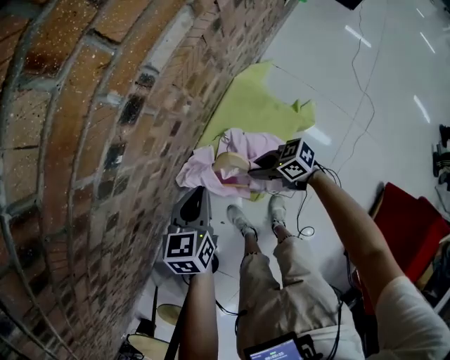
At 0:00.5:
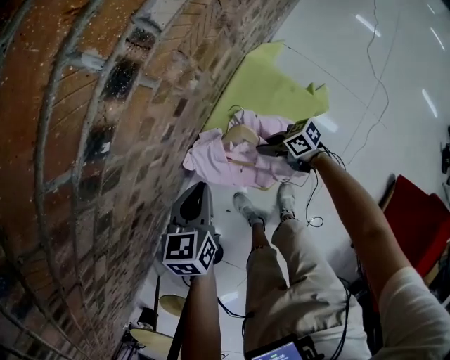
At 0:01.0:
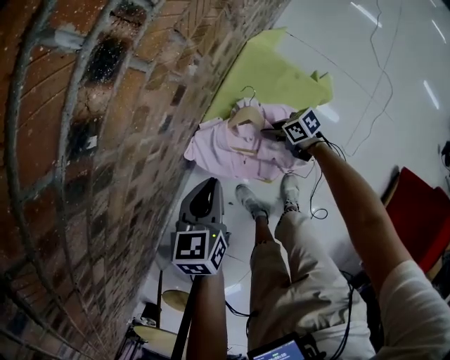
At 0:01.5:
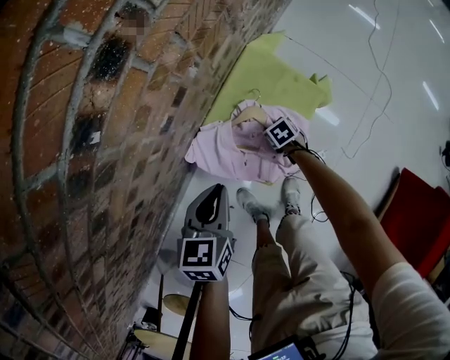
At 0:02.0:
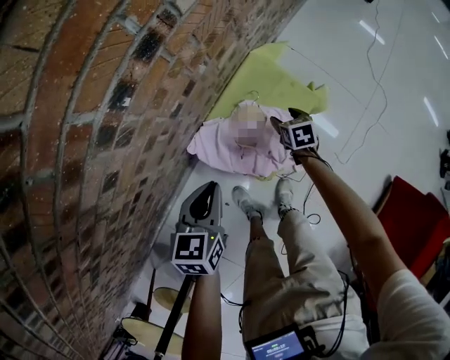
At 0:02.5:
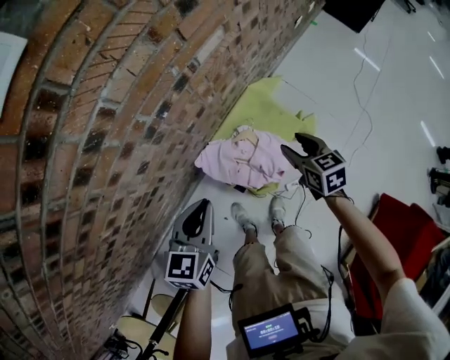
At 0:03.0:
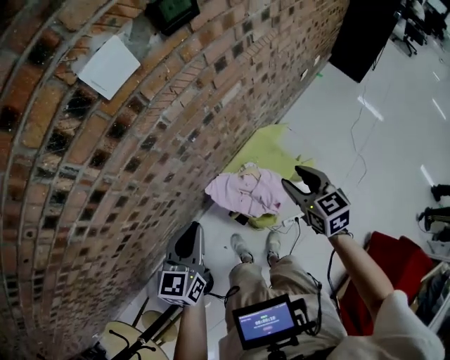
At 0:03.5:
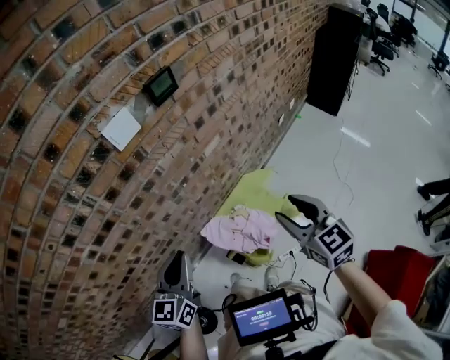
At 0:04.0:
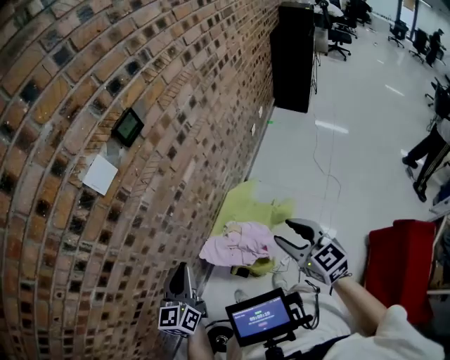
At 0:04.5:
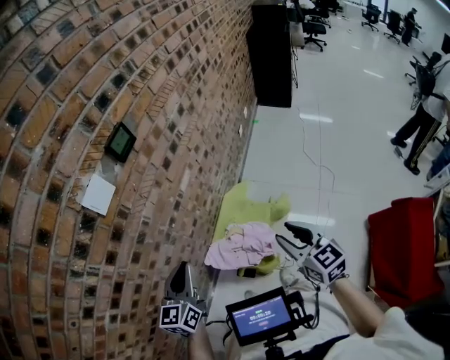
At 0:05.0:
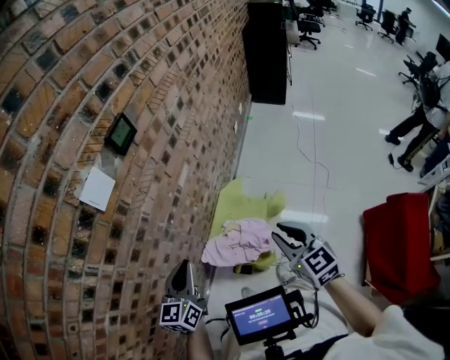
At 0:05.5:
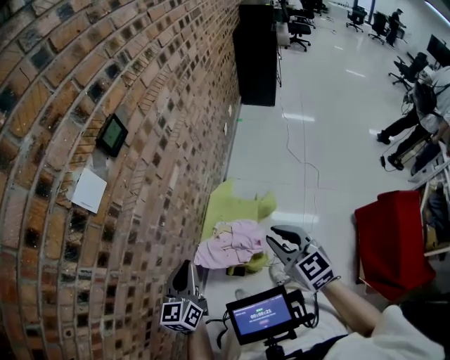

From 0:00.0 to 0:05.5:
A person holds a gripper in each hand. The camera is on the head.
From 0:00.0 to 0:02.0: The left gripper reaches some 10 cm downward, then returns; the right gripper travels downward by approximately 10 cm, tips its fingers downward by roughly 30 degrees, and opens its fingers.
From 0:02.0 to 0:03.5: The right gripper is displaced upward by some 80 cm, and tilts its fingers roughly 40 degrees upward, while the left gripper travels upward by approximately 50 cm, and tilts its fingers some 30 degrees upward.
From 0:03.5 to 0:05.5: The right gripper is displaced backward by approximately 5 cm, changes its angle by about 20 degrees, and closes up. The left gripper shifts about 10 cm forward, and changes its angle by about 20 degrees.

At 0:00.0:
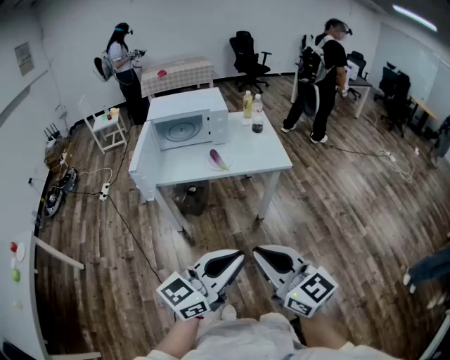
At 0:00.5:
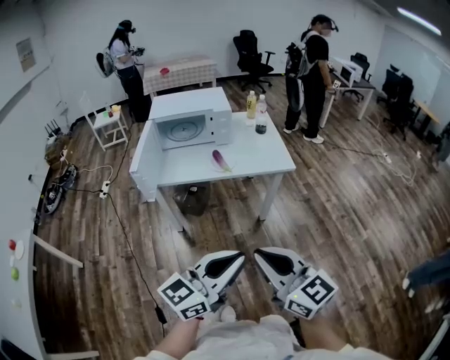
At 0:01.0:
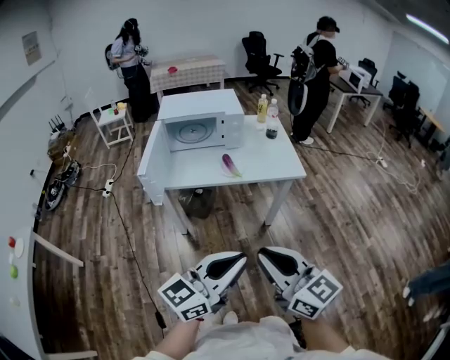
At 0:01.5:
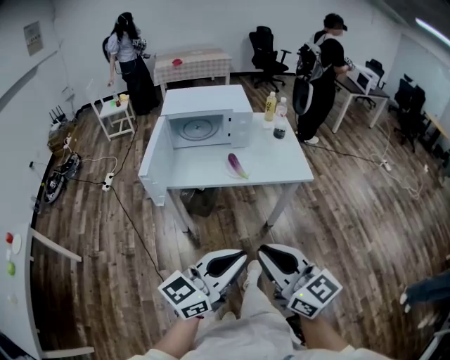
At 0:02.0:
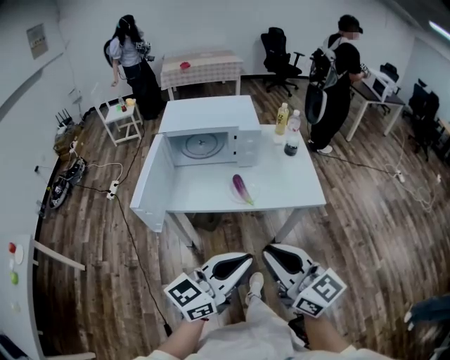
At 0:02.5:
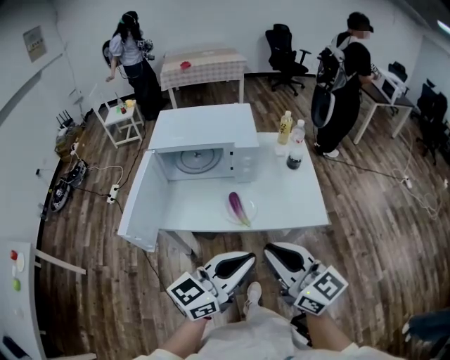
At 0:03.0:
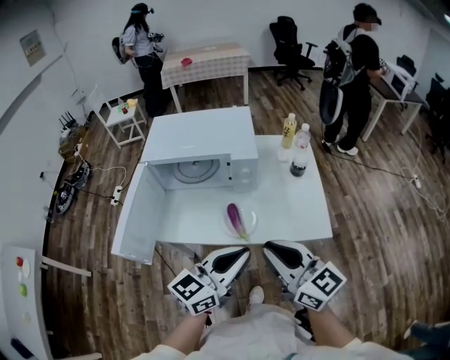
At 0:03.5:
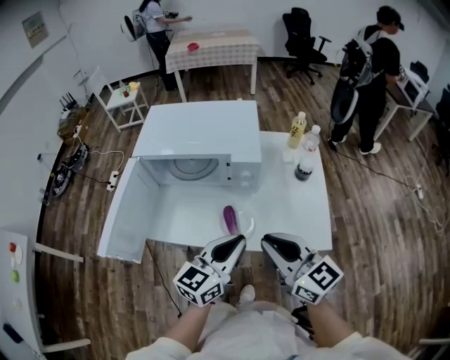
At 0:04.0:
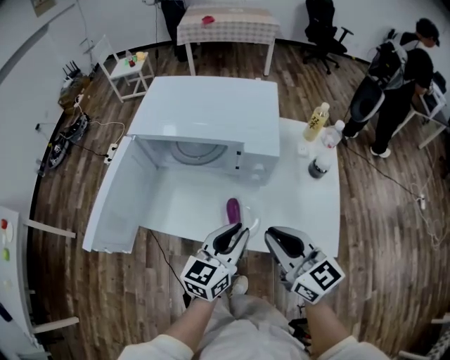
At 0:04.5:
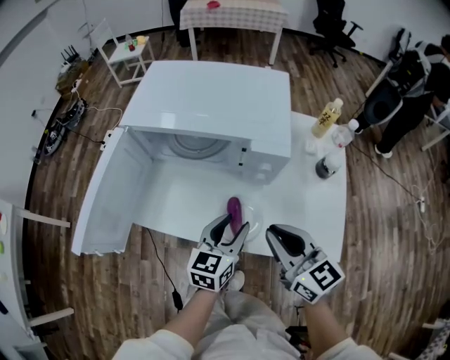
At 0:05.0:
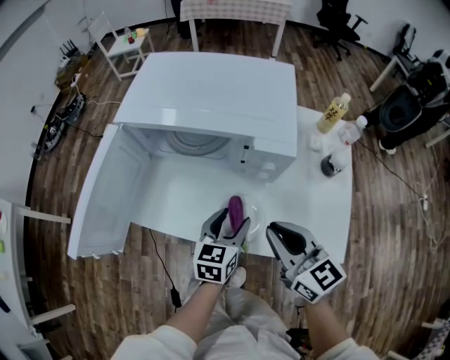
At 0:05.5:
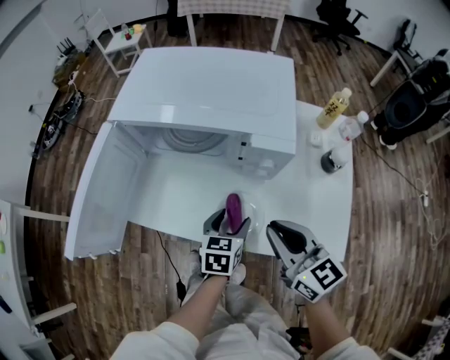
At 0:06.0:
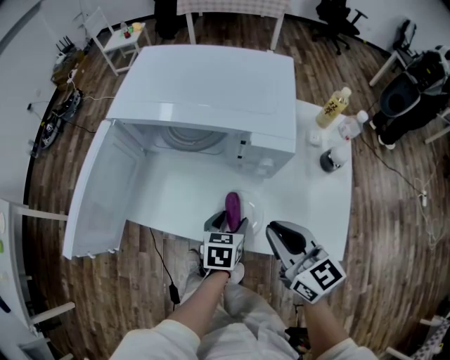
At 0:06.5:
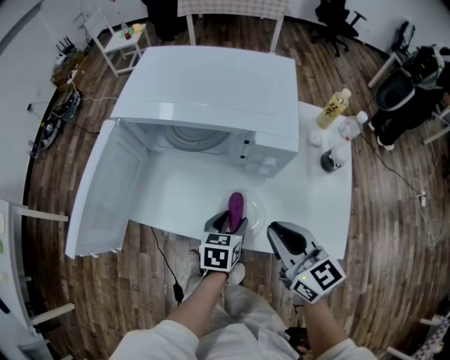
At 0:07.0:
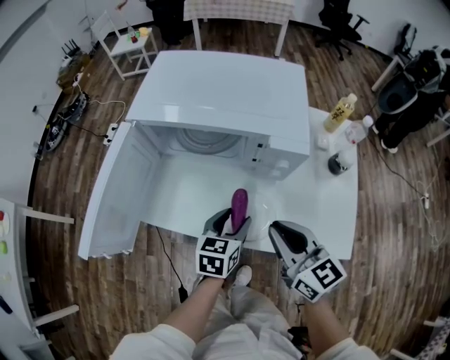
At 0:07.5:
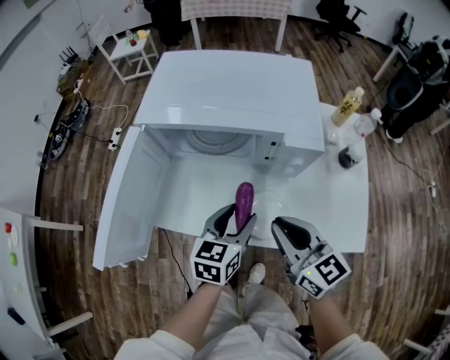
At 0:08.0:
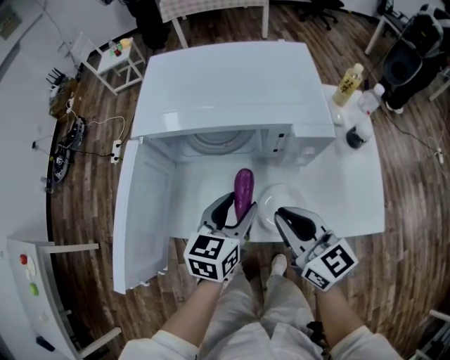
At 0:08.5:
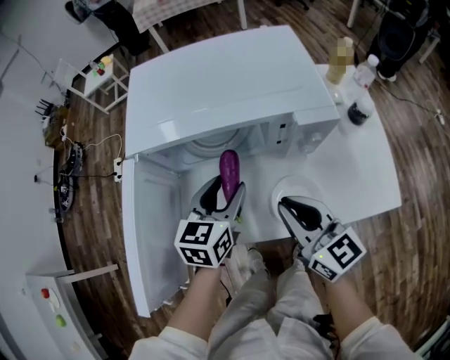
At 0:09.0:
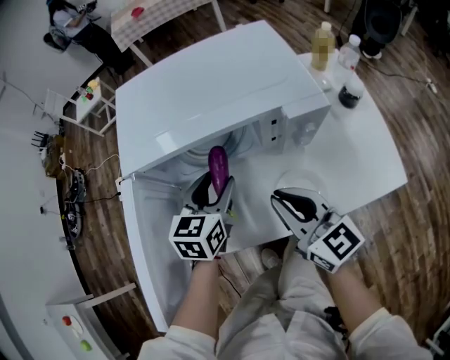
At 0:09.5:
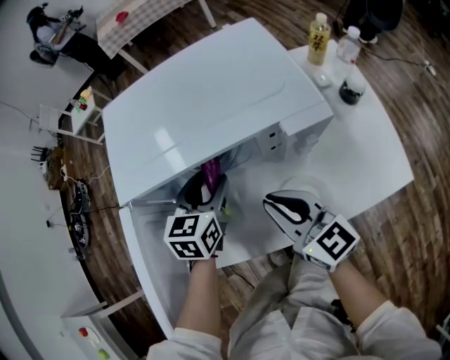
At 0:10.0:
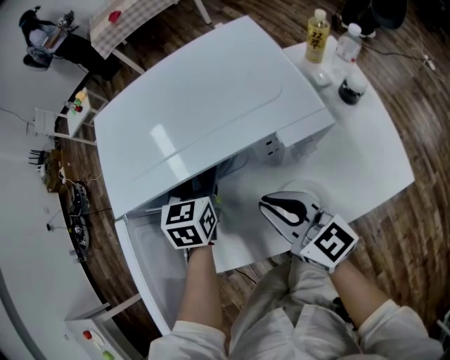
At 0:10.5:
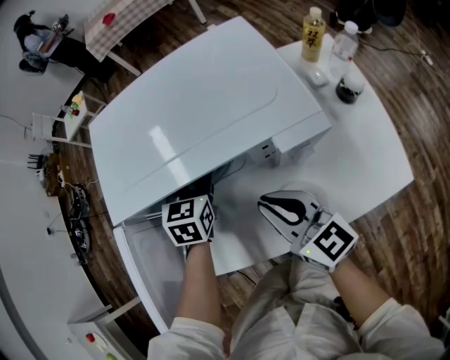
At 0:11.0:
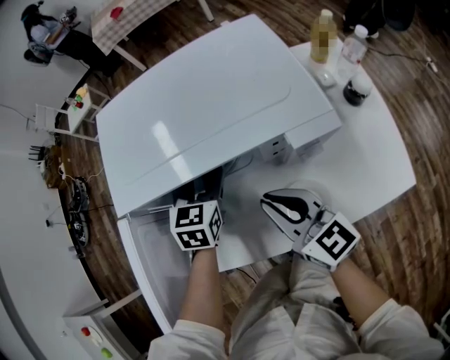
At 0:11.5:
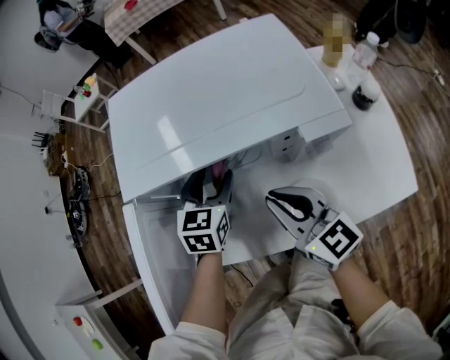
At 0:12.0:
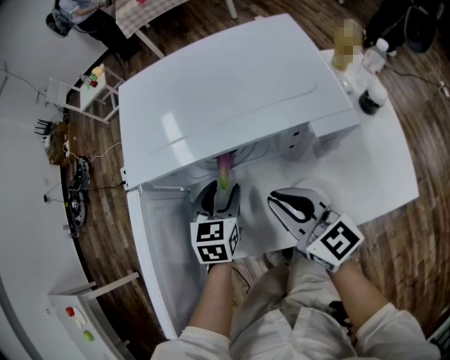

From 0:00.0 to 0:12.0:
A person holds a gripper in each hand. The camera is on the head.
From 0:00.0 to 0:02.0: The two grippers go about 25 cm forward.
From 0:02.0 to 0:04.0: The right gripper heads forward, covering approximately 30 cm, while the left gripper travels forward and downward by some 35 cm, and rotates some 30 degrees.
From 0:04.0 to 0:06.0: The left gripper travels downward by roughly 20 cm, angles its fingers downward, by about 40 degrees, and opens its fingers. The right gripper shifts some 5 cm downward.
From 0:06.0 to 0:08.0: The right gripper moves to the left, some 10 cm; the left gripper goes approximately 15 cm upward and to the left, and rotates approximately 20 degrees.
From 0:08.0 to 0:10.0: The left gripper moves forward, about 20 cm; the right gripper moves forward, approximately 10 cm.
From 0:10.0 to 0:12.0: The left gripper goes approximately 10 cm backward.

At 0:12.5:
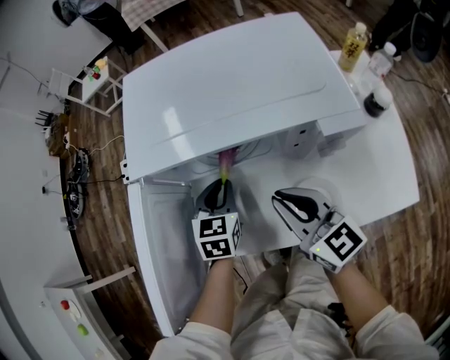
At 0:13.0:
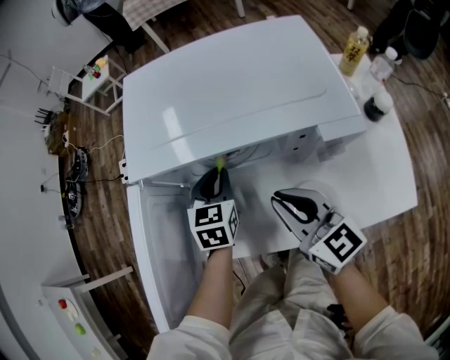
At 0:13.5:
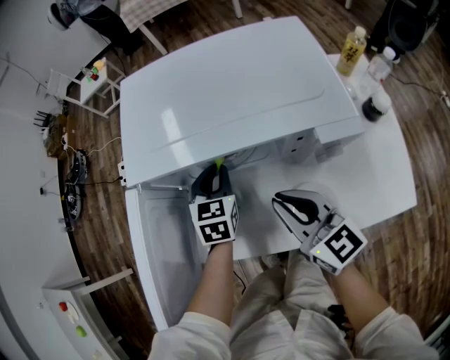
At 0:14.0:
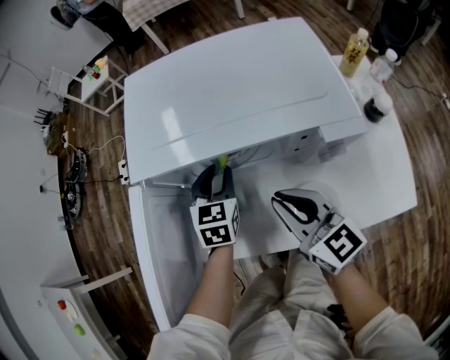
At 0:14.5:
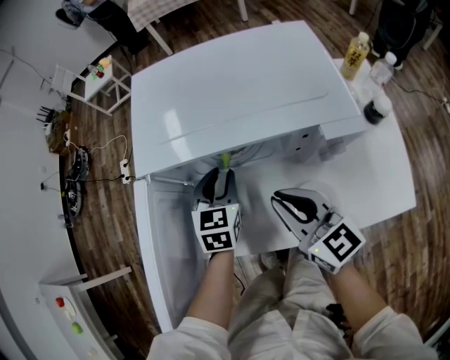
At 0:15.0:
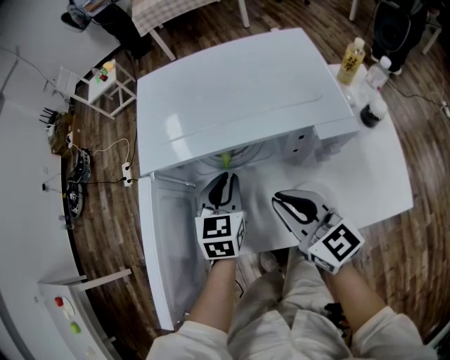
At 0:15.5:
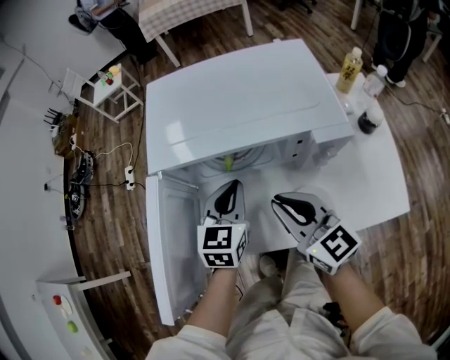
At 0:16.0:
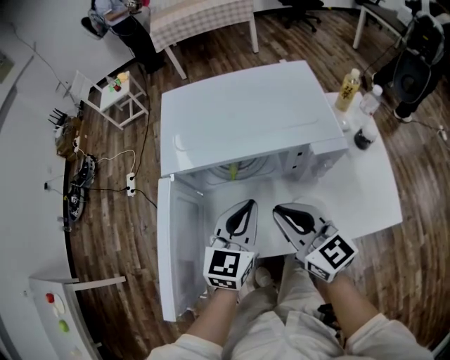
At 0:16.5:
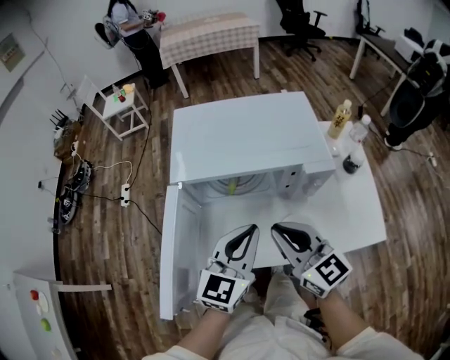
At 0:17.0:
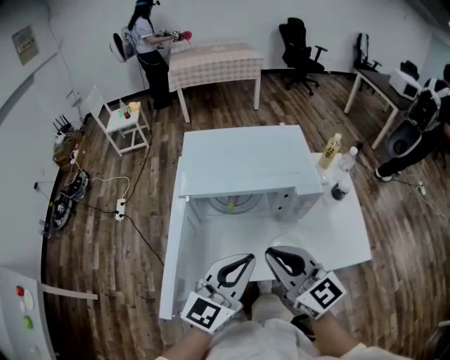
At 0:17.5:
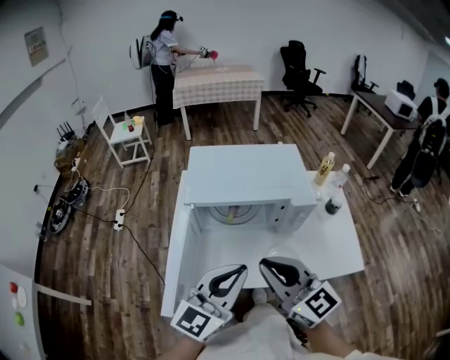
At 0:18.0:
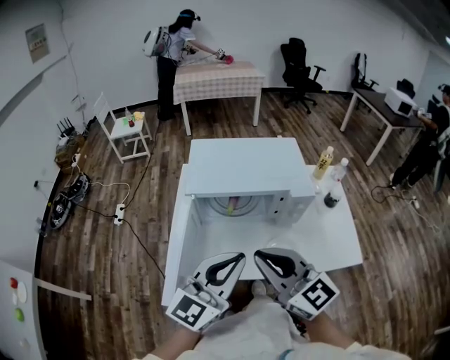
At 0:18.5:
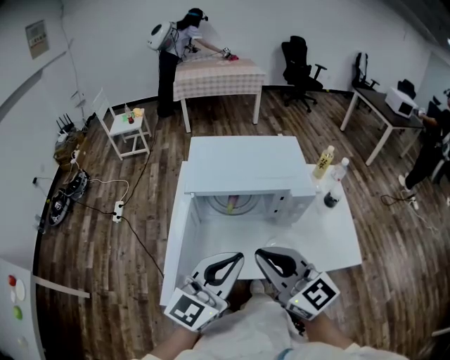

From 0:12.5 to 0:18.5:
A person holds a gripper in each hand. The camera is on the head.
From 0:12.5 to 0:14.5: There are only small adjustments of the grippers.
From 0:14.5 to 0:16.5: The left gripper heads upward and backward, covering about 20 cm, rotates some 30 degrees, and closes up. Meanwhile the right gripper goes about 10 cm upward and backward.
From 0:16.5 to 0:18.5: Both grippers travel together upward and backward, about 15 cm.

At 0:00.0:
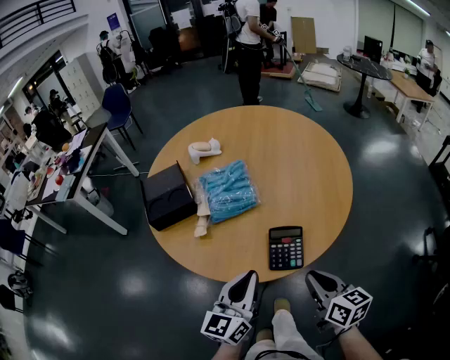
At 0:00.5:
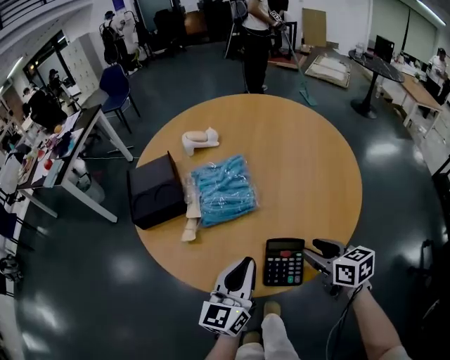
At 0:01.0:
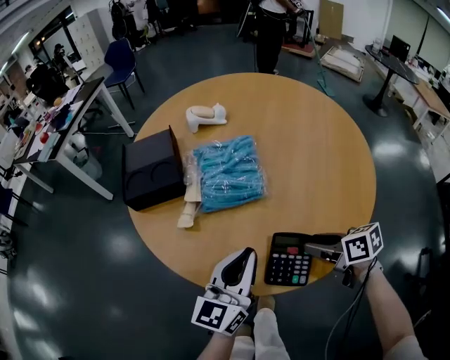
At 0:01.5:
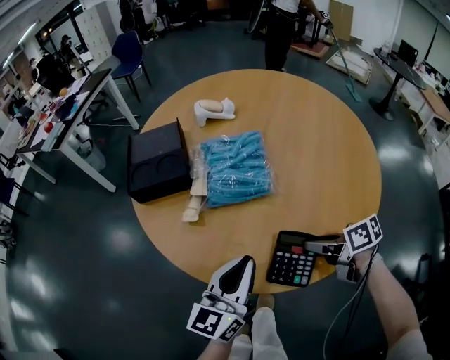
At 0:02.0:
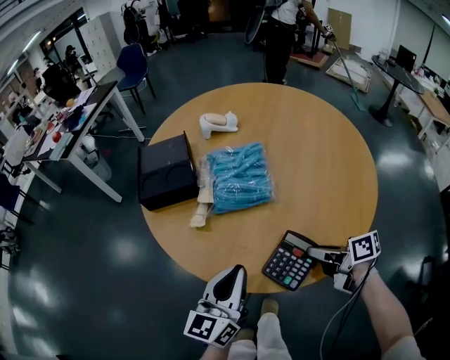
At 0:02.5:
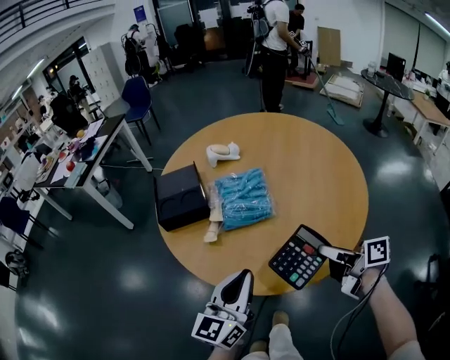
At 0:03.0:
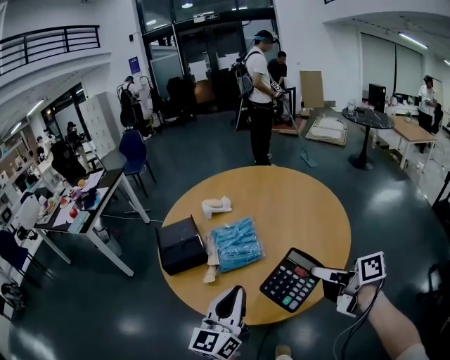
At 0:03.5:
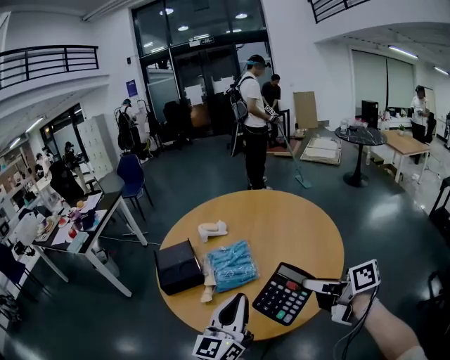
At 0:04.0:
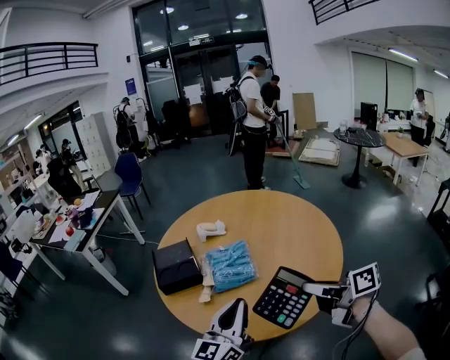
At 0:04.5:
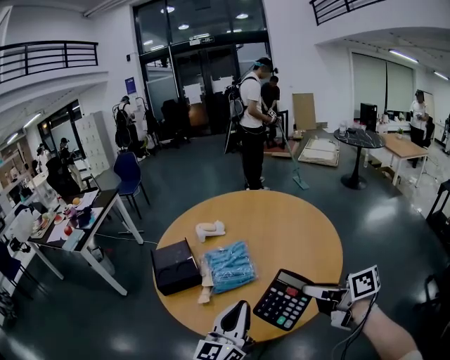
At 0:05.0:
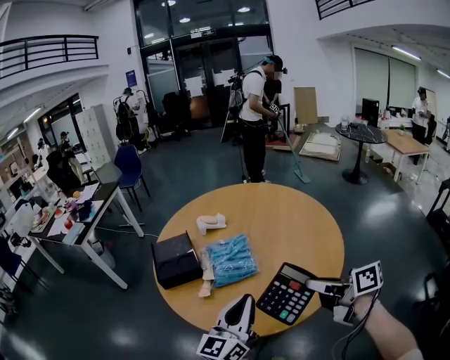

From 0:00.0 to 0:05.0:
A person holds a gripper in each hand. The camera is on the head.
From 0:00.0 to 0:02.5: The right gripper reaches some 10 cm downward, then returns, changes its angle by roughly 40 degrees, and opens and closes again; the left gripper travels downward and back again, approximately 5 cm each way.
From 0:02.5 to 0:05.0: The grippers both shift upward by roughly 10 cm.
